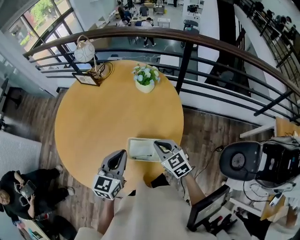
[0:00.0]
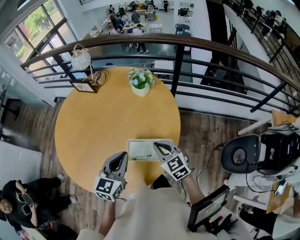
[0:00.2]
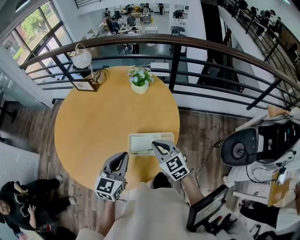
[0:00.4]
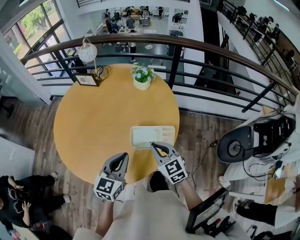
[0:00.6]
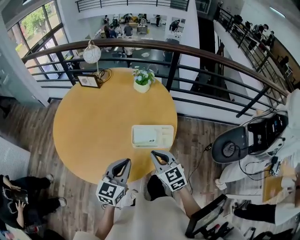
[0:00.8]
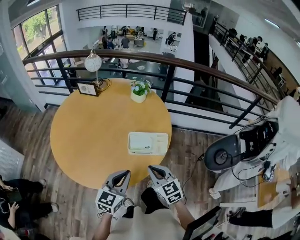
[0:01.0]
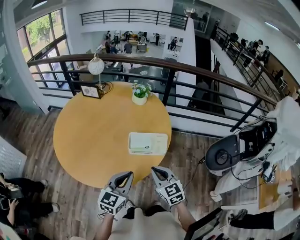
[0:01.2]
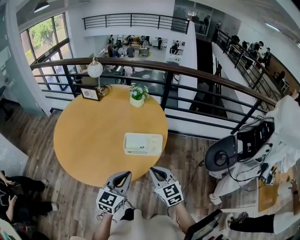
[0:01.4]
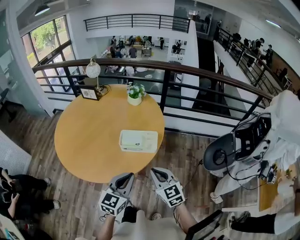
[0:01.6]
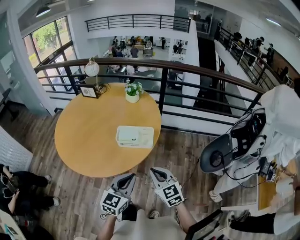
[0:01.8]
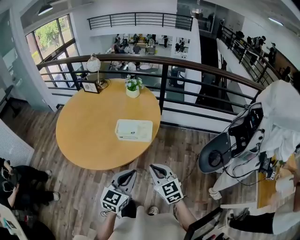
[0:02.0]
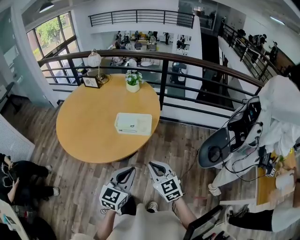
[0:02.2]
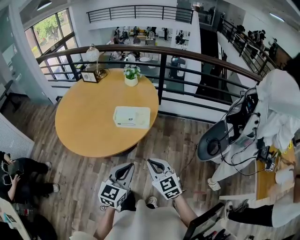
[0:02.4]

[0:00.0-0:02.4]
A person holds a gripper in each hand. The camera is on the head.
0:00.0 to 0:01.2: The grippers both shift backward by roughly 15 cm.
0:01.2 to 0:02.4: The grippers both shift backward and to the right by about 15 cm.

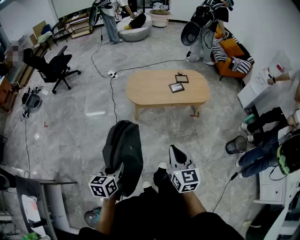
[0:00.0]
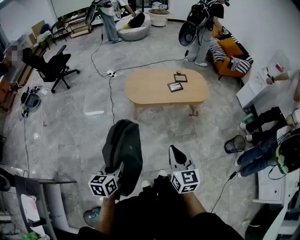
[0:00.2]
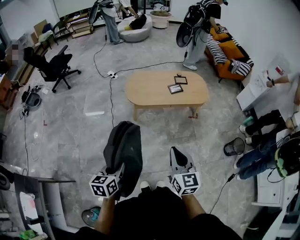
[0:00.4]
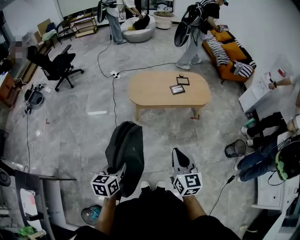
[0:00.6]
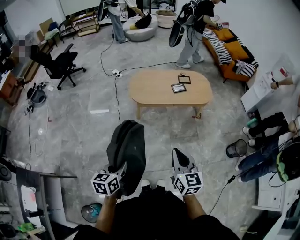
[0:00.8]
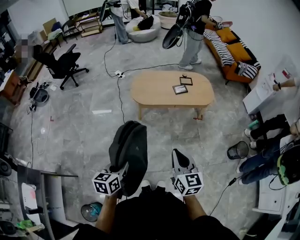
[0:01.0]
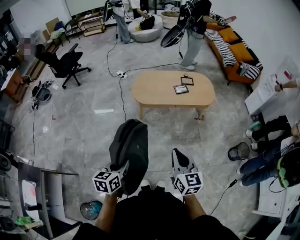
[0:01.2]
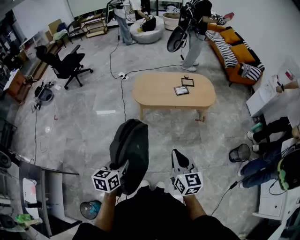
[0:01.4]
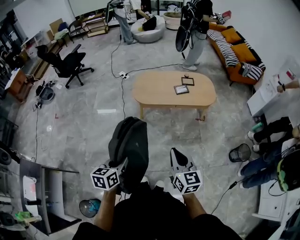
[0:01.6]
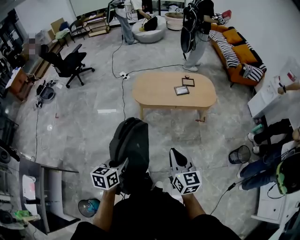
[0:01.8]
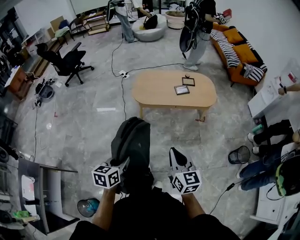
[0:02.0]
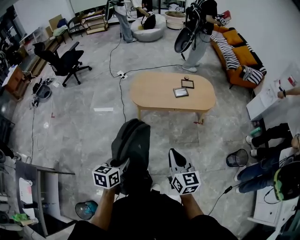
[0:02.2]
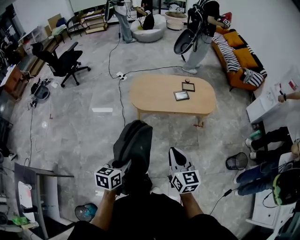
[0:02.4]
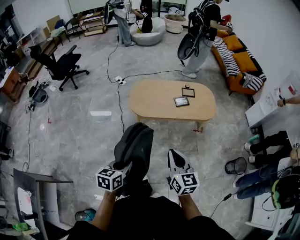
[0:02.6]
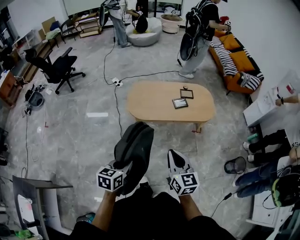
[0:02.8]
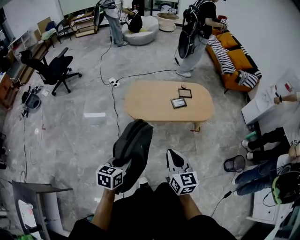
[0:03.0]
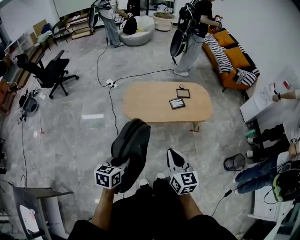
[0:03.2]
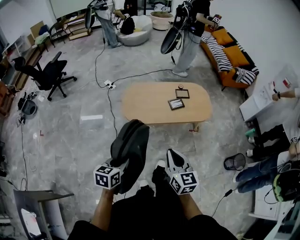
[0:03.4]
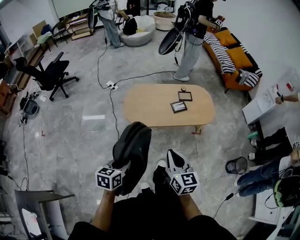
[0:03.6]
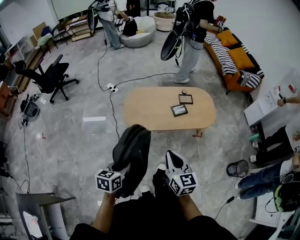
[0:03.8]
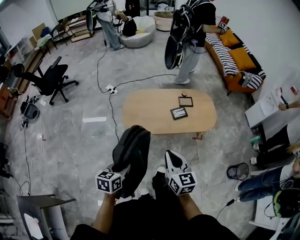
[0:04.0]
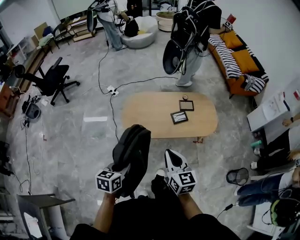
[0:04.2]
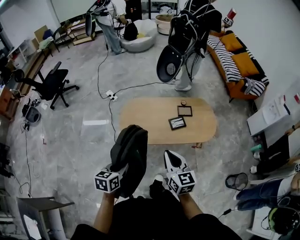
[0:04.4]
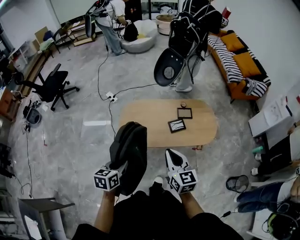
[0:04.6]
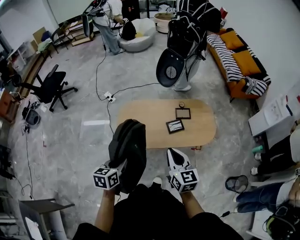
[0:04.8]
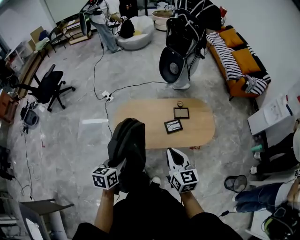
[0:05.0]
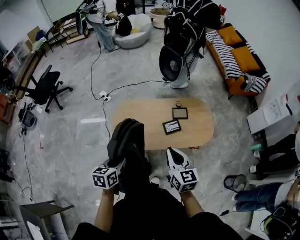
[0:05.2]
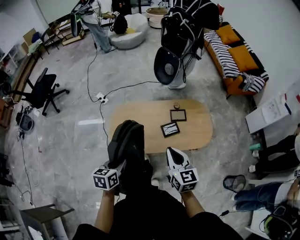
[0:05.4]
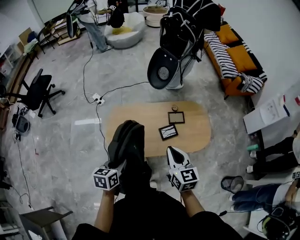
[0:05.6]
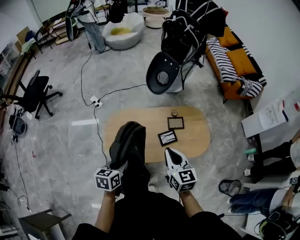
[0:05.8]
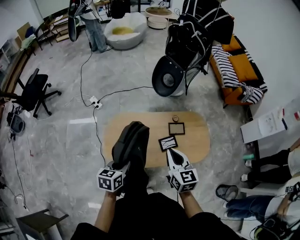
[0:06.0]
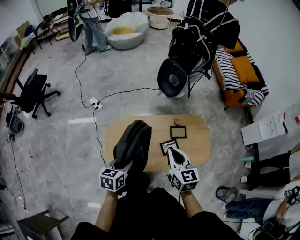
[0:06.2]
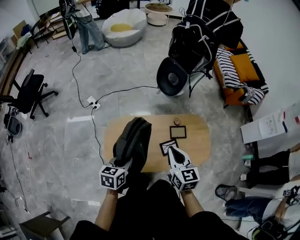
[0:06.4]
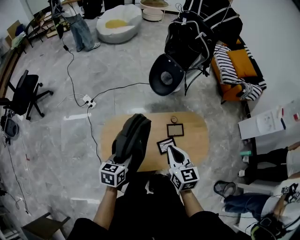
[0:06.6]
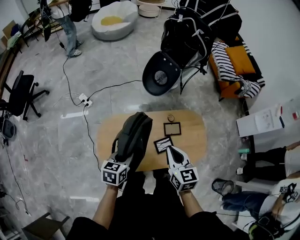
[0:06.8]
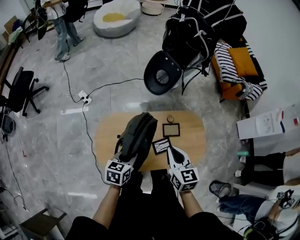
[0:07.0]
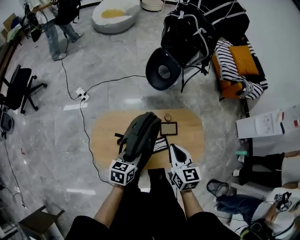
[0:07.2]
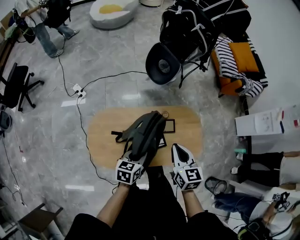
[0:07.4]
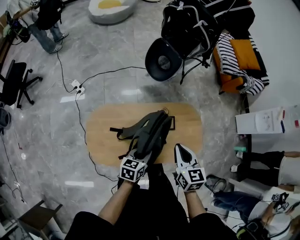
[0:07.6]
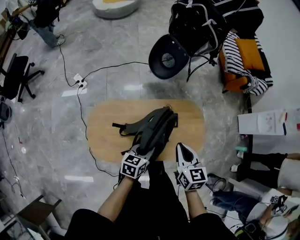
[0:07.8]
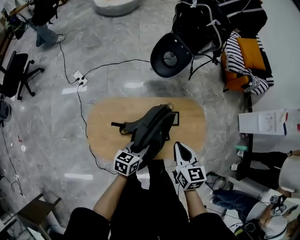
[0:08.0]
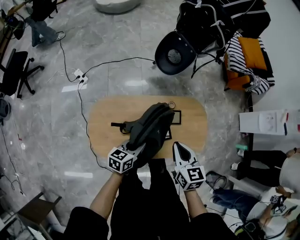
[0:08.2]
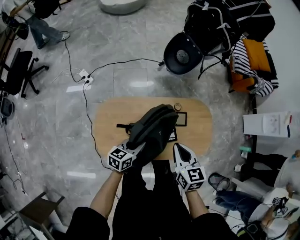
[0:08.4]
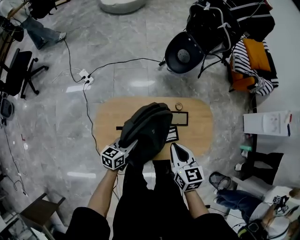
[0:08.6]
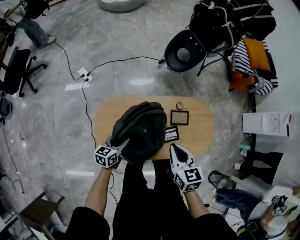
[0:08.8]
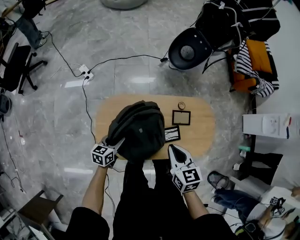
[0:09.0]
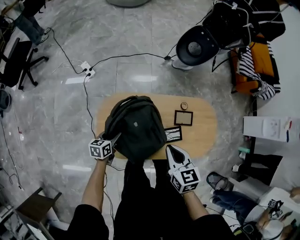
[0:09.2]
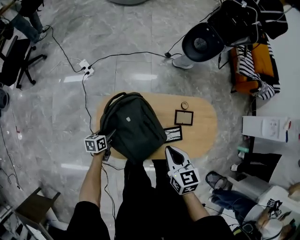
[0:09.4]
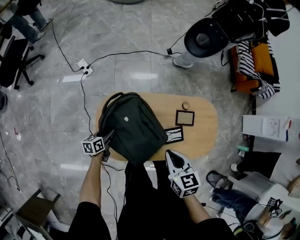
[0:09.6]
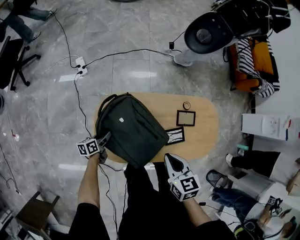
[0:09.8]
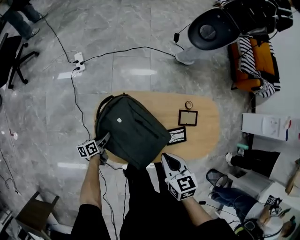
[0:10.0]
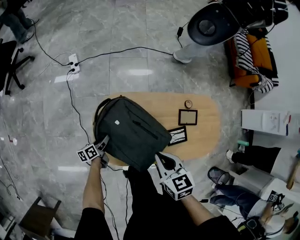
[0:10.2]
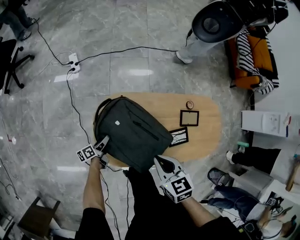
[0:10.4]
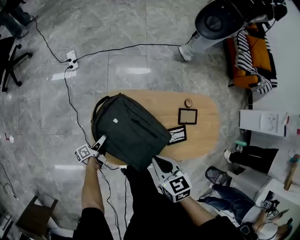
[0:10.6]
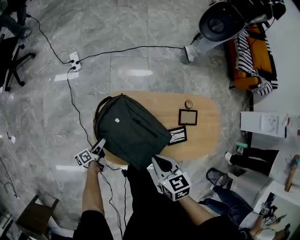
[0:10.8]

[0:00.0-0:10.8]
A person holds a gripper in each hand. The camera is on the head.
0:00.0 to 0:01.6: The two grippers go approximately 10 cm to the right.
0:01.6 to 0:03.0: Both grippers travel together forward, about 20 cm.
0:03.0 to 0:04.6: Both grippers travel together forward, roughly 25 cm.
0:04.6 to 0:06.2: The grippers both shift forward by some 25 cm.
0:06.2 to 0:07.8: The left gripper travels to the right, forward and downward by about 25 cm; the right gripper travels to the right, forward and downward by about 15 cm.
0:07.8 to 0:09.2: The left gripper goes some 30 cm to the left and downward, and opens up; the right gripper heads to the left, covering about 15 cm.
0:09.2 to 0:10.8: The left gripper moves downward and to the left, about 20 cm, and rotates around the line of its fingers by about 40 degrees, counterclockwise from behind, while the right gripper goes about 15 cm to the left and downward.

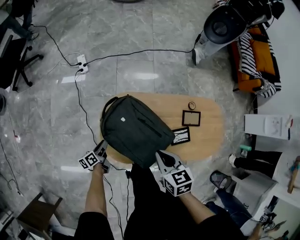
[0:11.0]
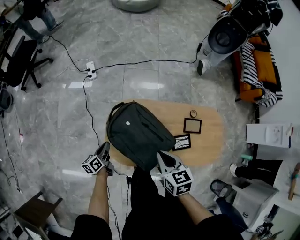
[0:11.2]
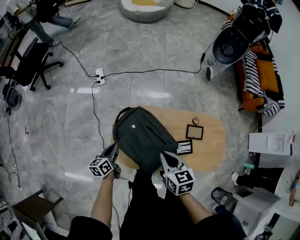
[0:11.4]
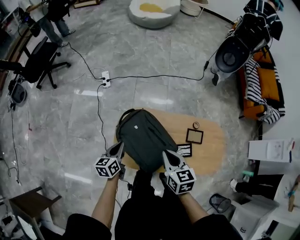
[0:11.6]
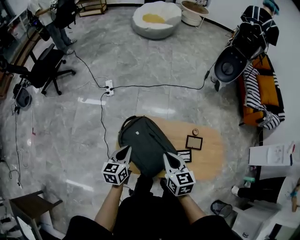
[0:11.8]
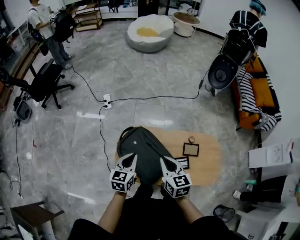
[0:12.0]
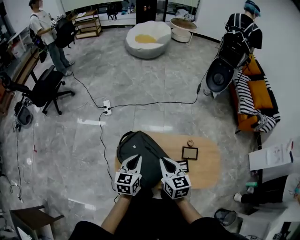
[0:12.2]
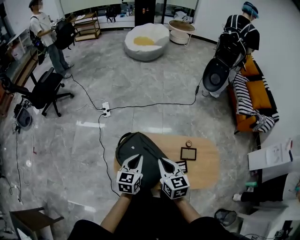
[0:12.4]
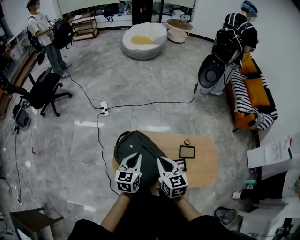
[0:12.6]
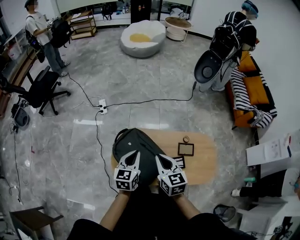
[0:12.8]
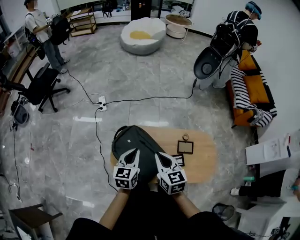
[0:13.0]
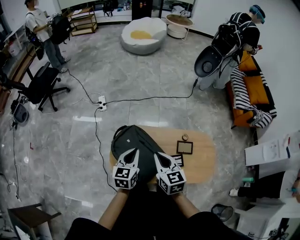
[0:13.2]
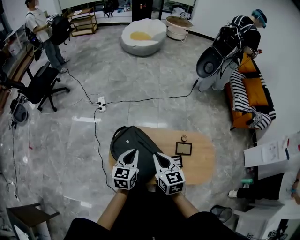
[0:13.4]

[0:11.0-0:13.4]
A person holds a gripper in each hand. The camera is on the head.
0:11.0 to 0:12.2: The right gripper goes roughly 15 cm upward, and changes its angle by some 20 degrees; the left gripper is displaced upward and to the right by about 40 cm, twists roughly 50 degrees clockwise, seen from behind, and closes its fingers.
0:12.2 to 0:13.4: There are only small adjustments of the grippers.

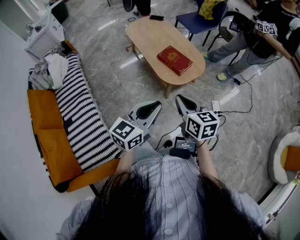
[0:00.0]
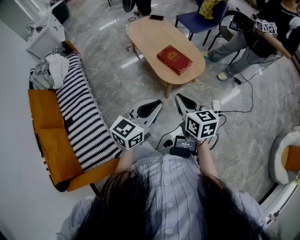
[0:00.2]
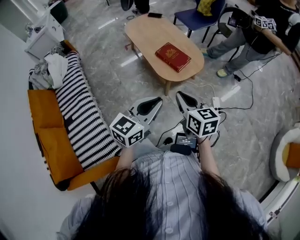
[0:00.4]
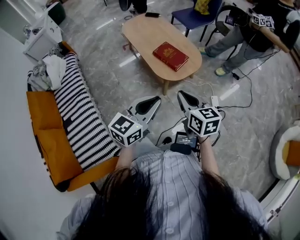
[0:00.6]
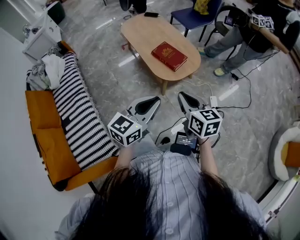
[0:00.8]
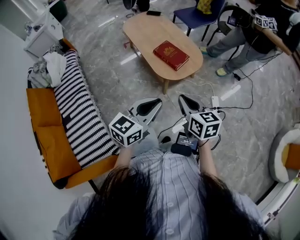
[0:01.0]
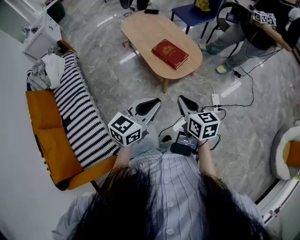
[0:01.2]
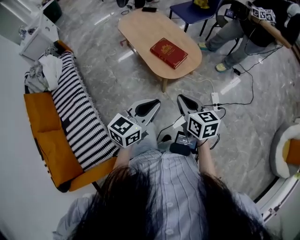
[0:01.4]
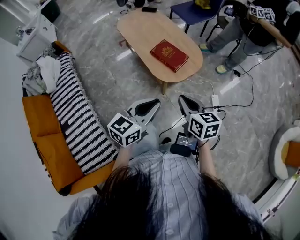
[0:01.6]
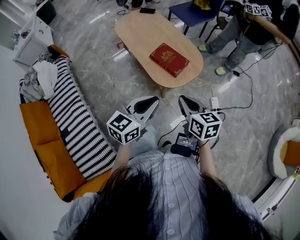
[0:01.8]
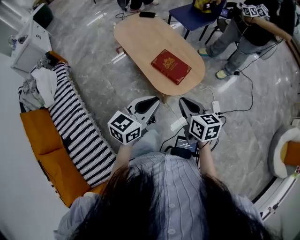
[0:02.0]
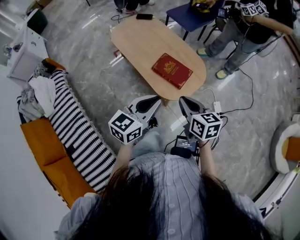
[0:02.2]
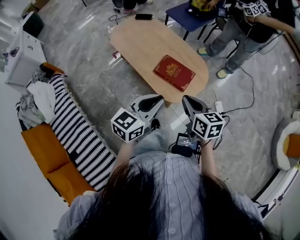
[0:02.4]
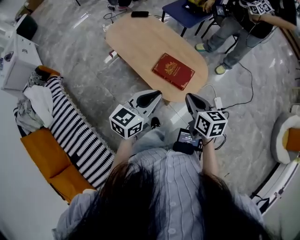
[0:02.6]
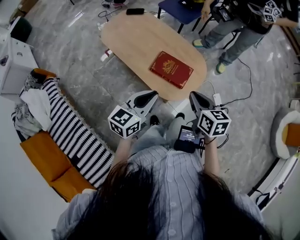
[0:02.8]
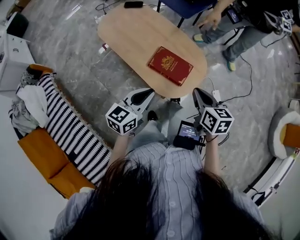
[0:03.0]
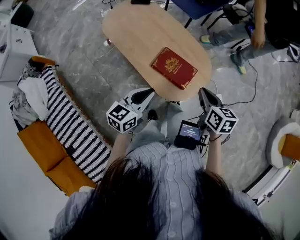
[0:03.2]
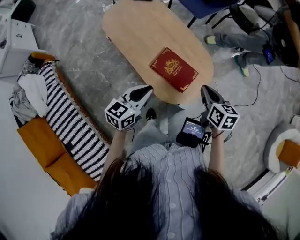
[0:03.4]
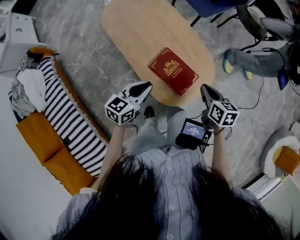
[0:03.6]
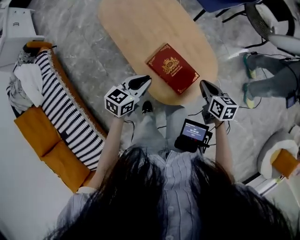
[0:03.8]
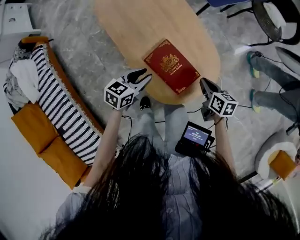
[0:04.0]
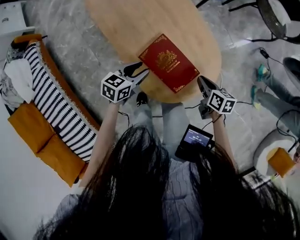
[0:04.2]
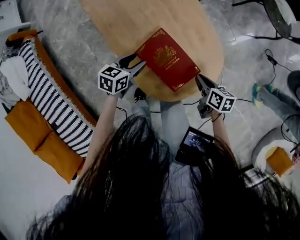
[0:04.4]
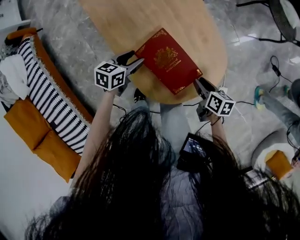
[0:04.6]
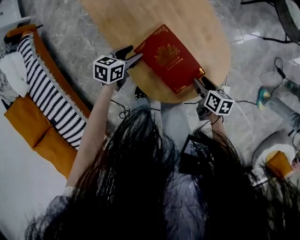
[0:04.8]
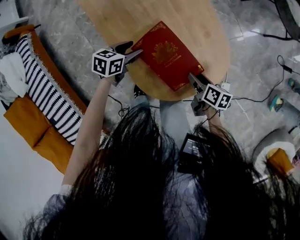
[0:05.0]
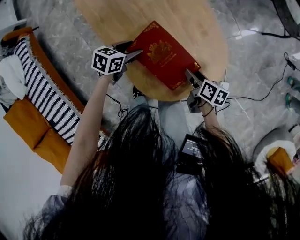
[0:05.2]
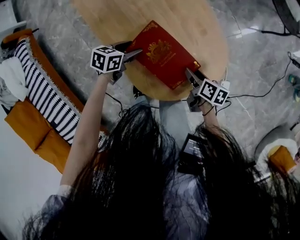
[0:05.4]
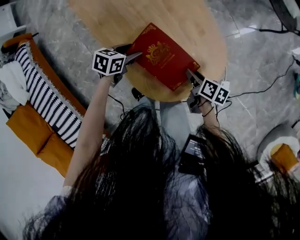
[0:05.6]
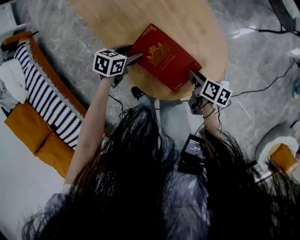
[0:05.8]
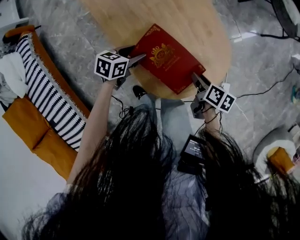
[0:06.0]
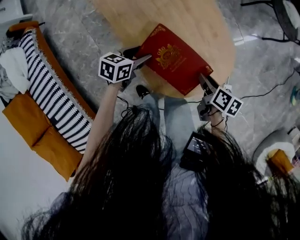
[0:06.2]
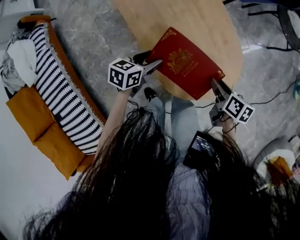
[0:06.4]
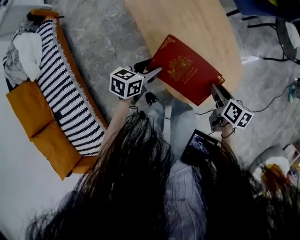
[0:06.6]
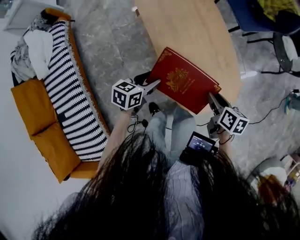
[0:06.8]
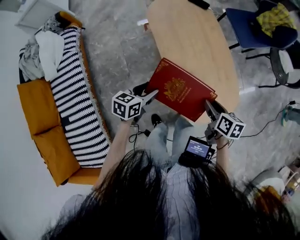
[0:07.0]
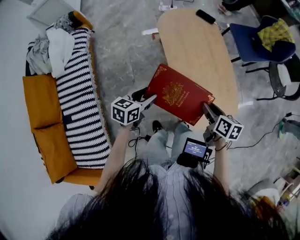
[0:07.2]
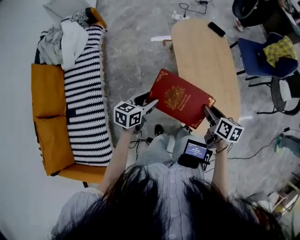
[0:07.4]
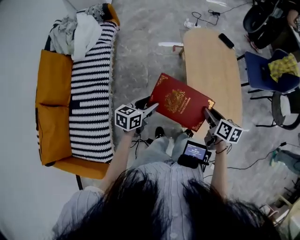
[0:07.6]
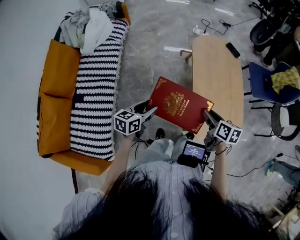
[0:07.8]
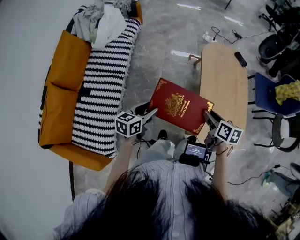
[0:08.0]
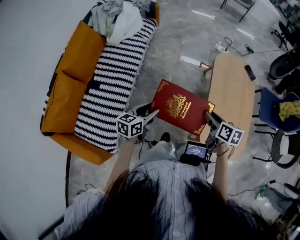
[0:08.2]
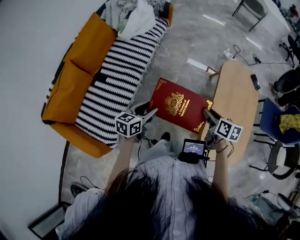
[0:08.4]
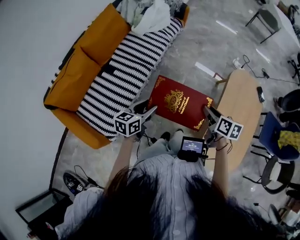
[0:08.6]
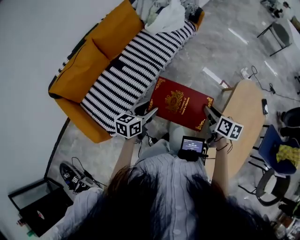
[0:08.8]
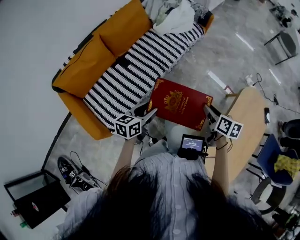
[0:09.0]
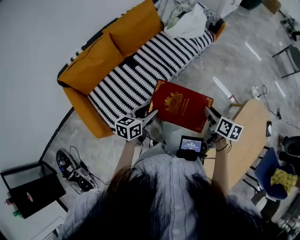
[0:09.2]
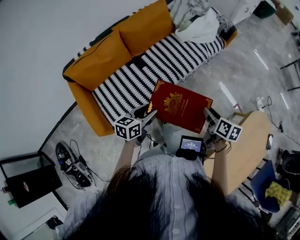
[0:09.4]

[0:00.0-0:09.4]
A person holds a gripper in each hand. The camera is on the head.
0:00.0 to 0:01.6: The grippers both shift forward by roughly 5 cm.
0:01.6 to 0:03.2: The right gripper shifts some 30 cm forward, and turns by about 20 degrees. The left gripper travels forward and to the left by about 35 cm.
0:03.2 to 0:04.8: The left gripper moves downward and forward, approximately 40 cm, rotates approximately 40 degrees, and opens its fingers. The right gripper heads downward, covering approximately 35 cm, rotates some 30 degrees, and opens up.
0:04.8 to 0:06.2: The right gripper moves upward, some 5 cm. Meanwhile the left gripper shifts by roughly 5 cm.
0:06.2 to 0:07.8: The left gripper moves approximately 50 cm, and changes its angle by roughly 50 degrees. The right gripper changes place by some 40 cm, and changes its angle by roughly 40 degrees.
0:07.8 to 0:09.4: The left gripper moves approximately 30 cm, and turns by about 50 degrees. The right gripper ends up approximately 40 cm from where it was, and turns by some 40 degrees.
